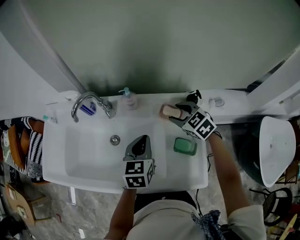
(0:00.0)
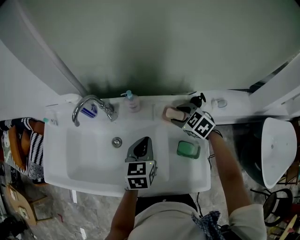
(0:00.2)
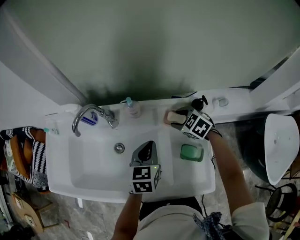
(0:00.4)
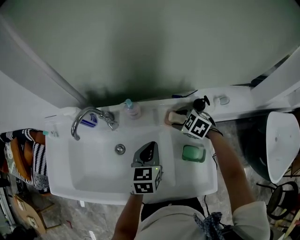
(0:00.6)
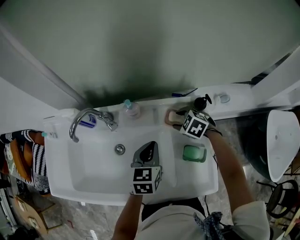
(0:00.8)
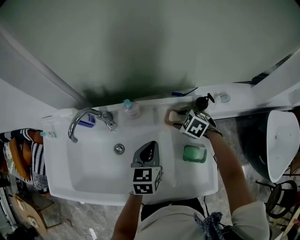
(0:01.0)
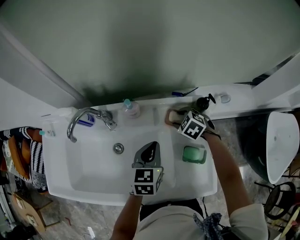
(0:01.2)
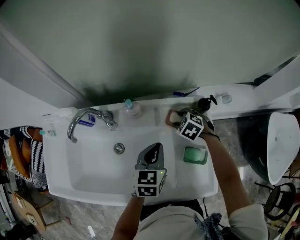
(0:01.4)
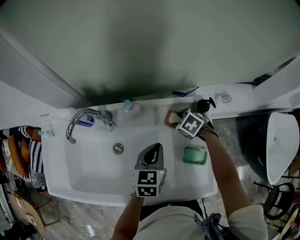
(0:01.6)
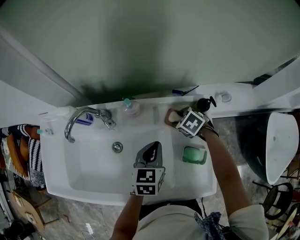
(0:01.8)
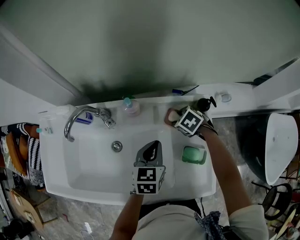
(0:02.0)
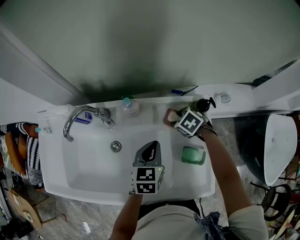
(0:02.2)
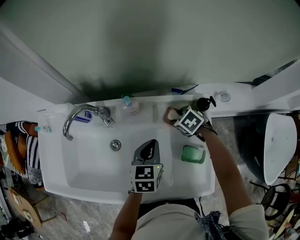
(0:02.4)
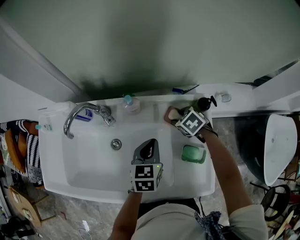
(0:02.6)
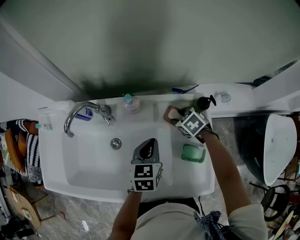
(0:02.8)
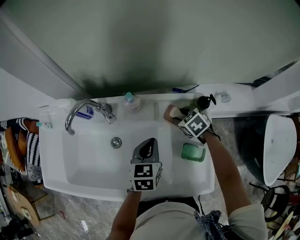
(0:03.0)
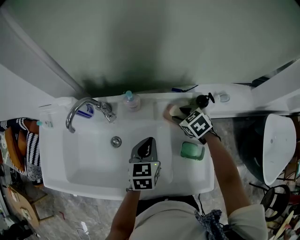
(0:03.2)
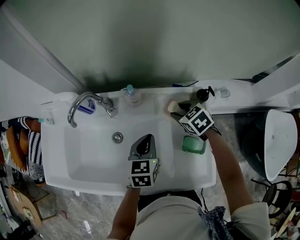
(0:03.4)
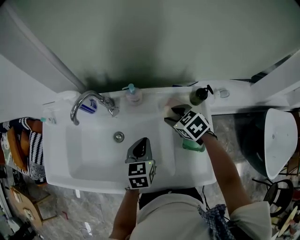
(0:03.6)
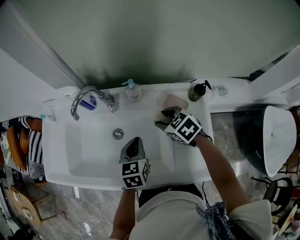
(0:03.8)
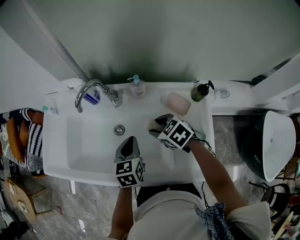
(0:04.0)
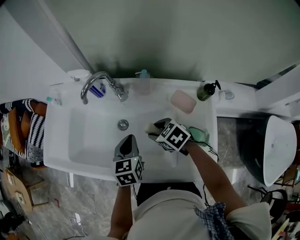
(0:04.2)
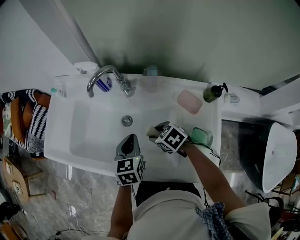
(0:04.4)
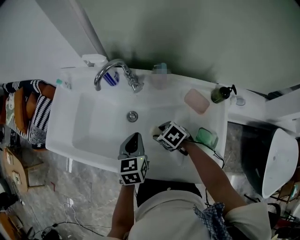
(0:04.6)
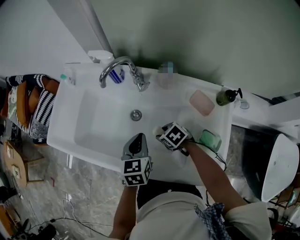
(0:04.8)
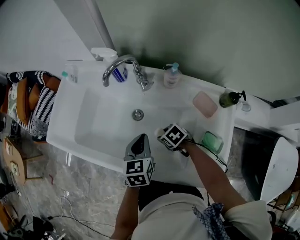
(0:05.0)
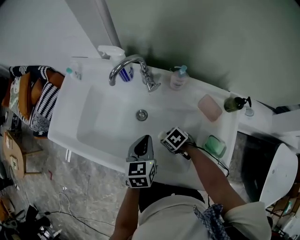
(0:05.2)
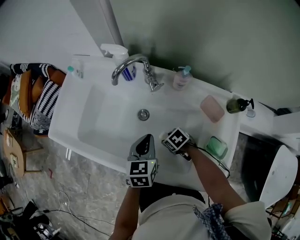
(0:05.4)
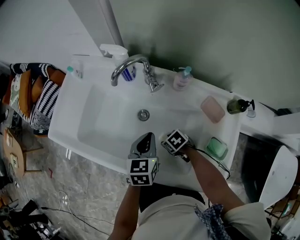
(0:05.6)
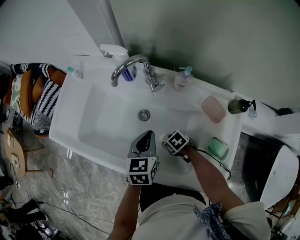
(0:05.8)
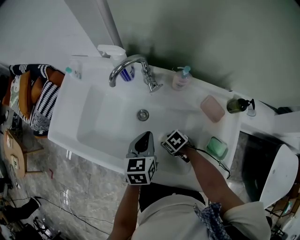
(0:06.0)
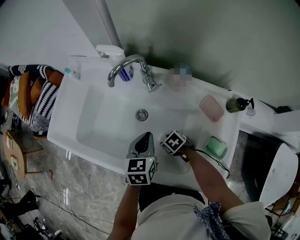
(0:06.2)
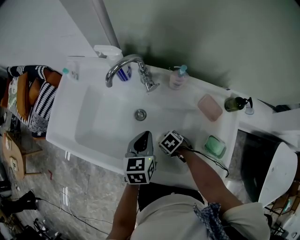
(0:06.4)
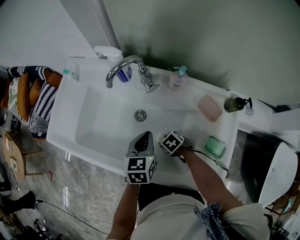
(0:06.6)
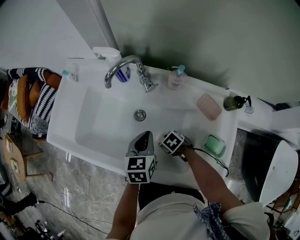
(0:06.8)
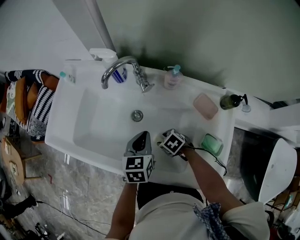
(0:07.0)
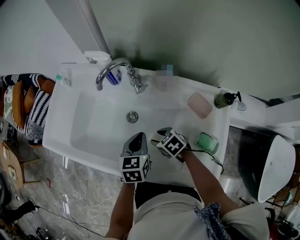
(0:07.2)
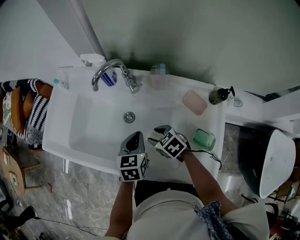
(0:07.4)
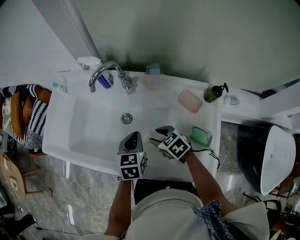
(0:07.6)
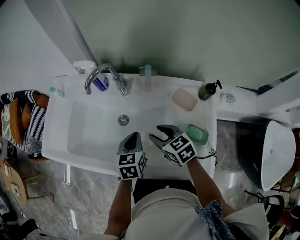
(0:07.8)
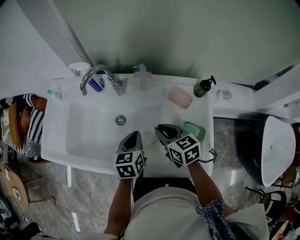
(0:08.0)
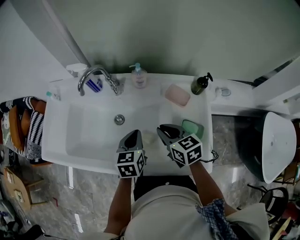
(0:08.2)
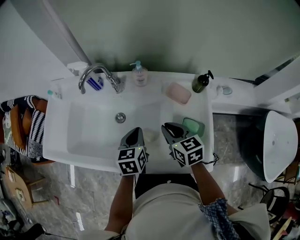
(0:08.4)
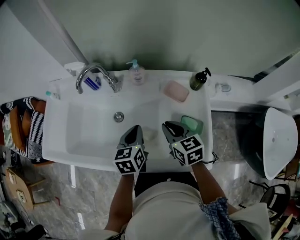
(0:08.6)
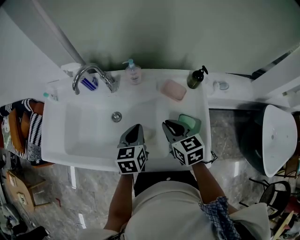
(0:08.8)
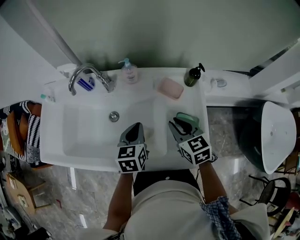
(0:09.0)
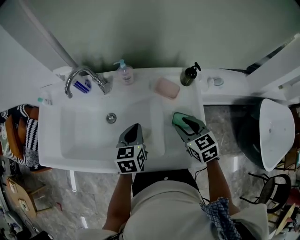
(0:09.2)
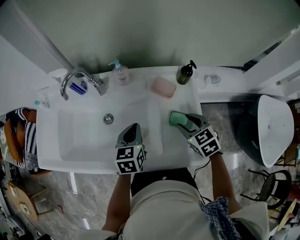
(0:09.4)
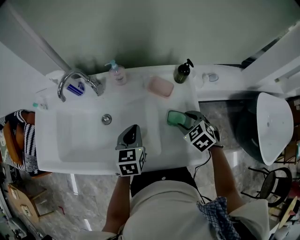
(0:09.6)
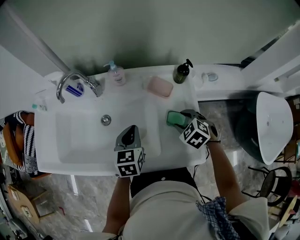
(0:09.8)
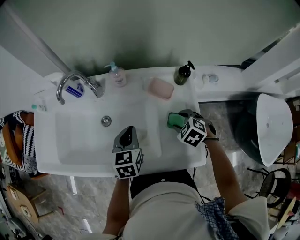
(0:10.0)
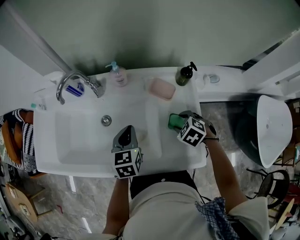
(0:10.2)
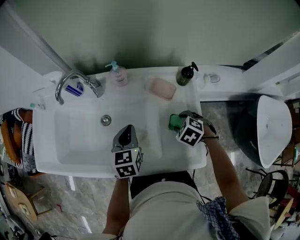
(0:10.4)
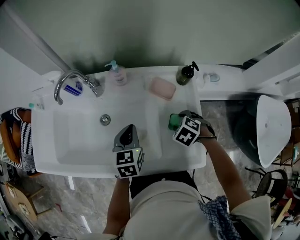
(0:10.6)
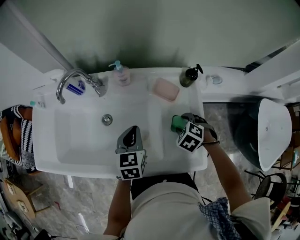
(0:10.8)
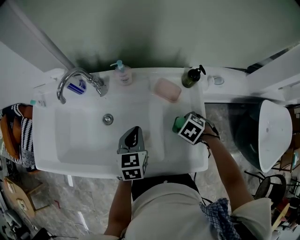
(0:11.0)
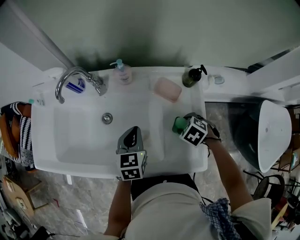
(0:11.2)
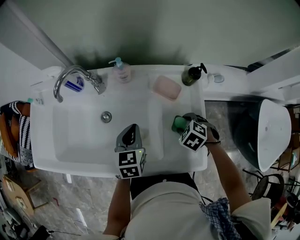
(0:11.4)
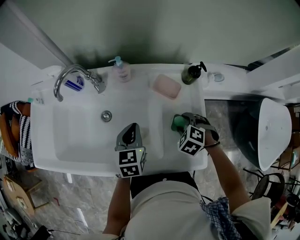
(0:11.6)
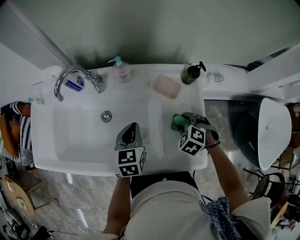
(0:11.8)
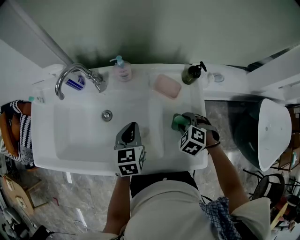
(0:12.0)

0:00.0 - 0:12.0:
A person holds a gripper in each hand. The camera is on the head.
0:00.0 - 0:01.6: The right gripper is displaced downward by approximately 15 cm, and rotates some 30 degrees. The left gripper changes place by about 5 cm.
0:01.6 - 0:03.0: The grippers stay close to where they were, moving slightly.
0:03.0 - 0:04.4: The right gripper goes upward and returns, about 10 cm each way, and swivels roughly 20 degrees, while the left gripper changes place by approximately 15 cm.
0:04.4 - 0:06.0: The right gripper shifts approximately 15 cm downward.
0:06.0 - 0:07.6: The right gripper goes approximately 15 cm upward, and rotates approximately 20 degrees.
0:07.6 - 0:09.0: The right gripper ends up some 20 cm from where it was, rotates roughly 40 degrees, and closes up. Meanwhile the left gripper ends up approximately 10 cm from where it was.
0:09.0 - 0:10.4: The right gripper is displaced downward by about 10 cm, points its fingers some 40 degrees further downward, and opens its fingers.
0:10.4 - 0:12.0: The grippers move only a little.

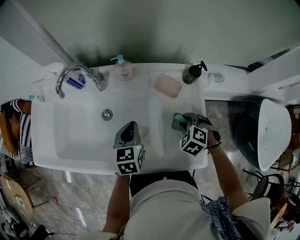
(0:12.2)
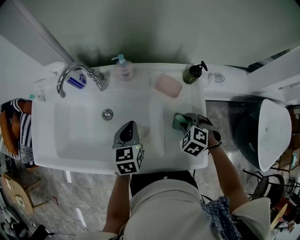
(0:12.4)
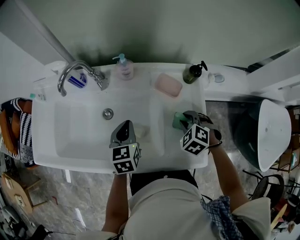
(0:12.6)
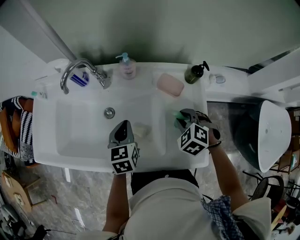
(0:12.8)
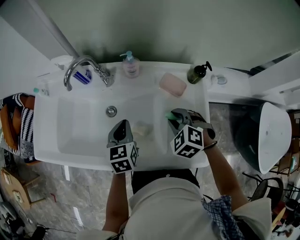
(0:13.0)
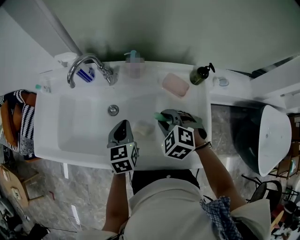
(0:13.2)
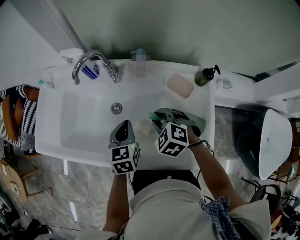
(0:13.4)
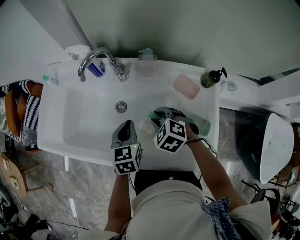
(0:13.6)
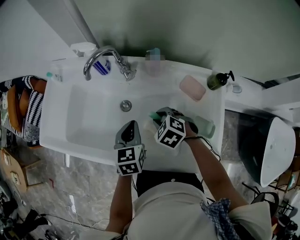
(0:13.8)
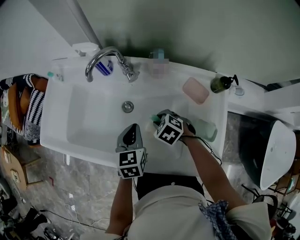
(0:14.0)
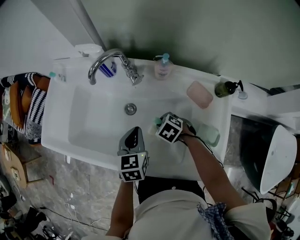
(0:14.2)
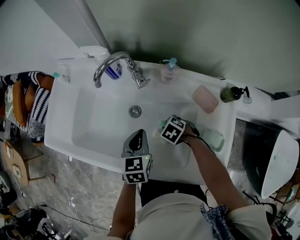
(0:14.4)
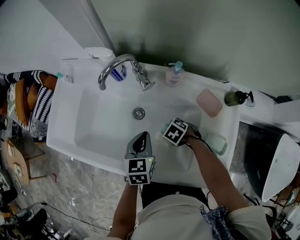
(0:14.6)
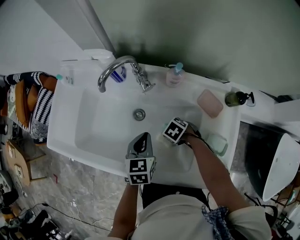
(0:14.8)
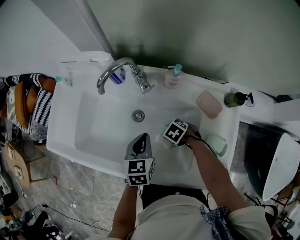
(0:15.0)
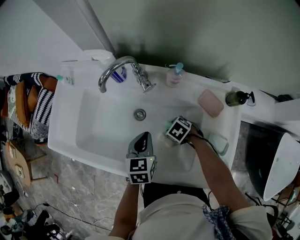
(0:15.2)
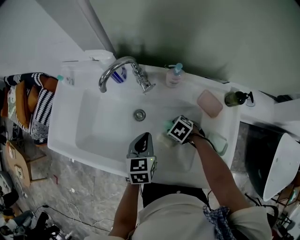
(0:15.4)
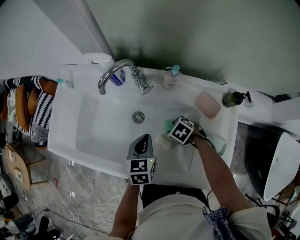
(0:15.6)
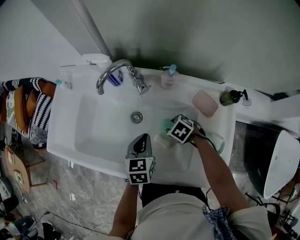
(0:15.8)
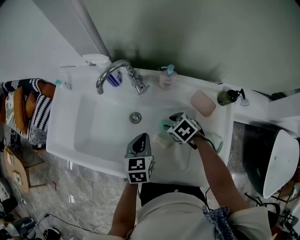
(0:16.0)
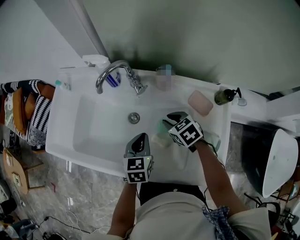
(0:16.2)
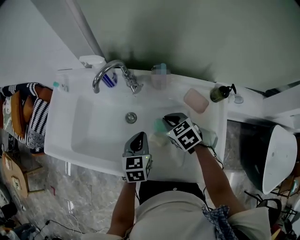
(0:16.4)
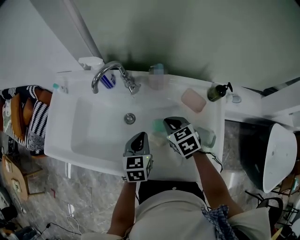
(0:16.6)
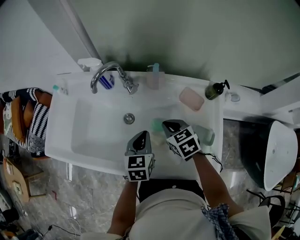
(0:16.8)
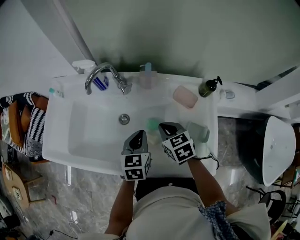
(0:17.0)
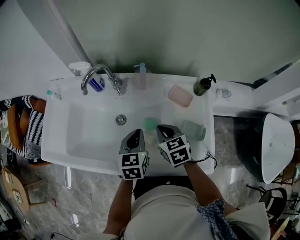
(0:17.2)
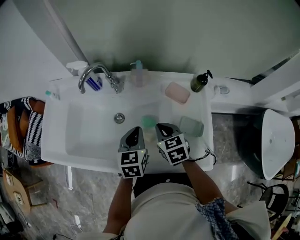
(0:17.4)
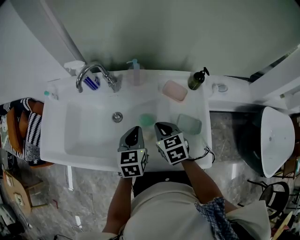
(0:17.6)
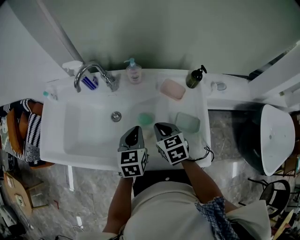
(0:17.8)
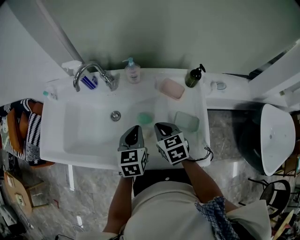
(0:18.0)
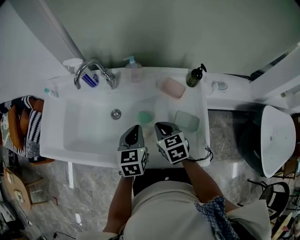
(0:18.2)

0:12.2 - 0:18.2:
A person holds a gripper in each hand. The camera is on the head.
0:12.2 - 0:13.8: The left gripper shifts by roughly 10 cm, while the right gripper shifts by approximately 20 cm, and rotates about 20 degrees.
0:13.8 - 0:15.2: The right gripper goes about 10 cm downward, and turns by roughly 20 degrees.
0:15.2 - 0:16.6: The right gripper moves upward, about 15 cm, changes its angle by about 40 degrees, and closes.
0:16.6 - 0:18.2: The left gripper travels to the right by roughly 5 cm. Meanwhile the right gripper is displaced backward by roughly 10 cm.

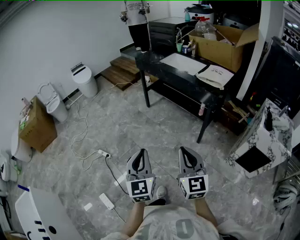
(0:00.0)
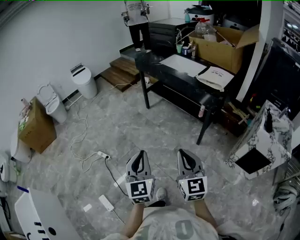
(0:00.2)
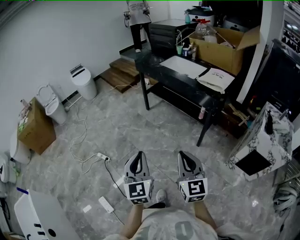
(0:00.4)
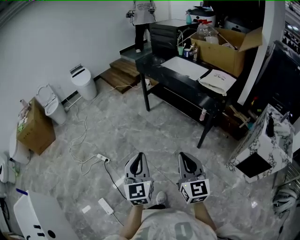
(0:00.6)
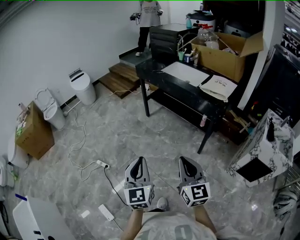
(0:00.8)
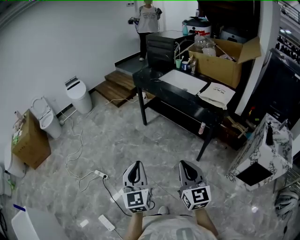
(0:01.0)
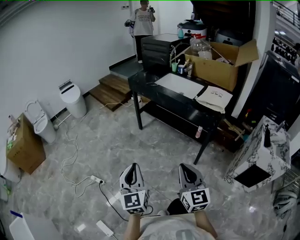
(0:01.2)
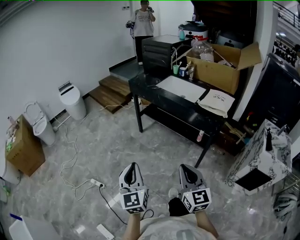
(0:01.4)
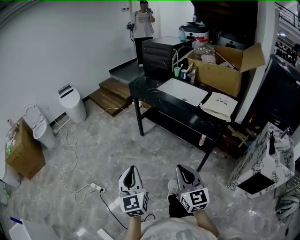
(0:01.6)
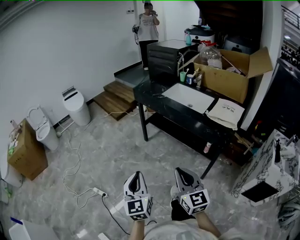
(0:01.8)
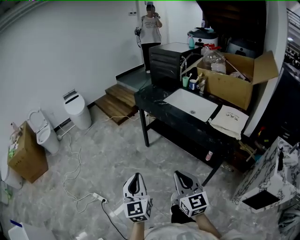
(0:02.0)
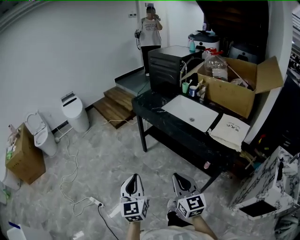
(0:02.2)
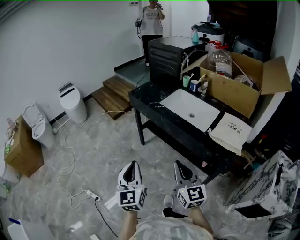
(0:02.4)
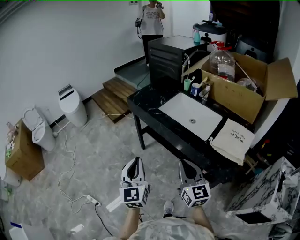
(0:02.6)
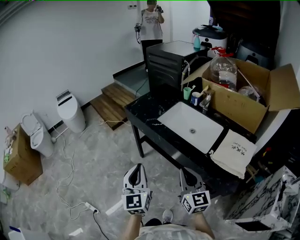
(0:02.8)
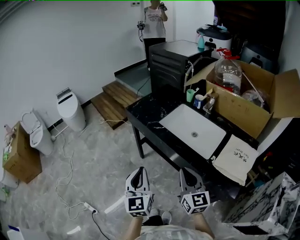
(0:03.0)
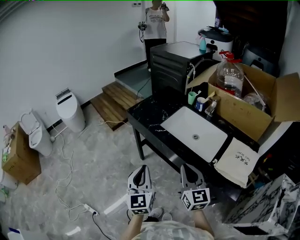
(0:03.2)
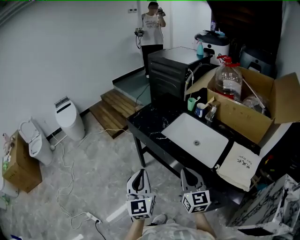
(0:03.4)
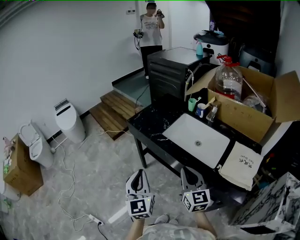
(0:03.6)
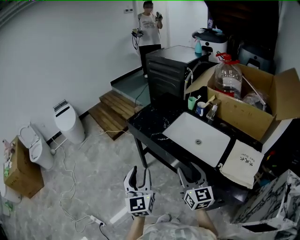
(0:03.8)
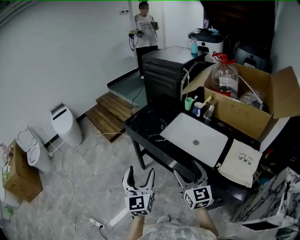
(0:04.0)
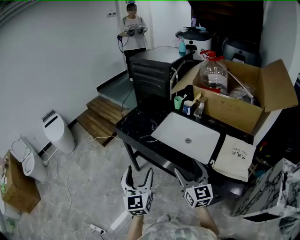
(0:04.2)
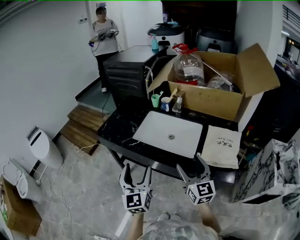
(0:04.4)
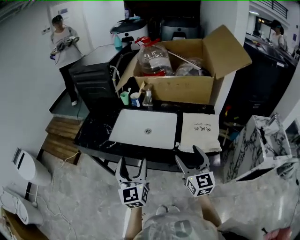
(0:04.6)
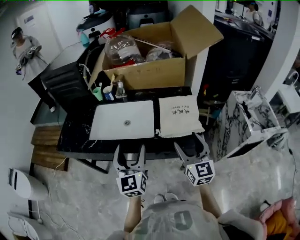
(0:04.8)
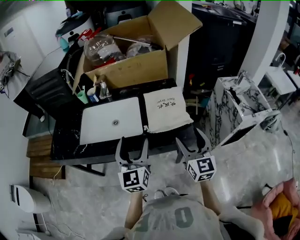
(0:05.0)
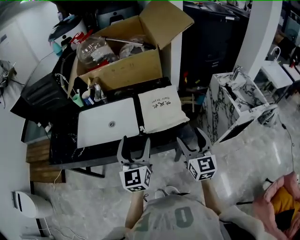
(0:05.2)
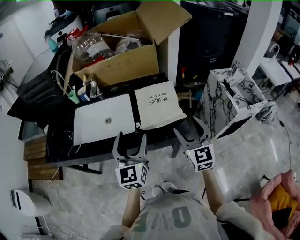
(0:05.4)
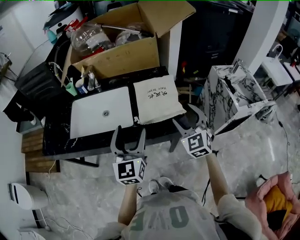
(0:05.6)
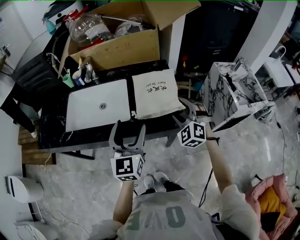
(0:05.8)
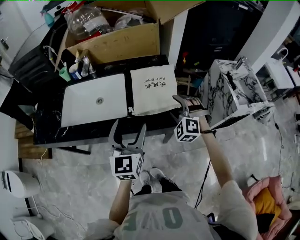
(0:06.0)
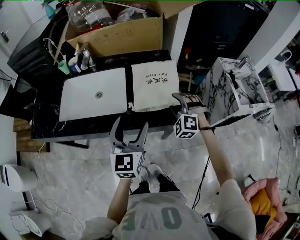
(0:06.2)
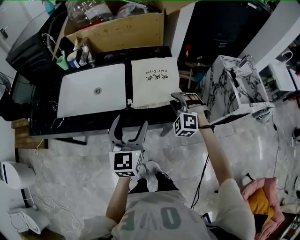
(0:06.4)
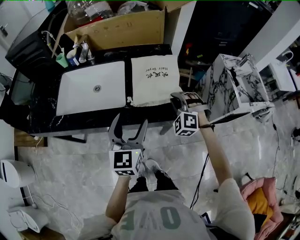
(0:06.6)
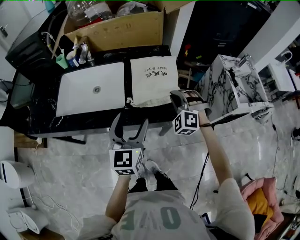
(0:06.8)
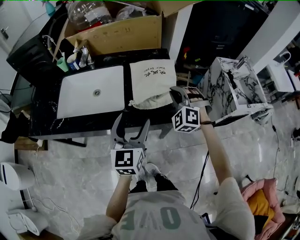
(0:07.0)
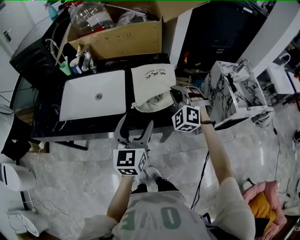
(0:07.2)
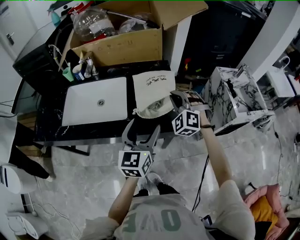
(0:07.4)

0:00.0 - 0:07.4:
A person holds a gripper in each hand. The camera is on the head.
0:00.0 - 0:01.4: The grippers both shift forward by some 15 cm.
0:01.4 - 0:03.0: The pair of grippers is taken forward, some 50 cm.
0:03.0 - 0:04.4: The right gripper travels to the right and forward by some 10 cm, swivels roughly 20 degrees, and opens, while the left gripper goes roughly 10 cm forward and to the right, and opens its fingers.
0:04.4 - 0:06.0: The right gripper moves approximately 30 cm, and tips its fingers downward by roughly 30 degrees; the left gripper ends up roughly 30 cm from where it was, and turns by about 40 degrees.
0:06.0 - 0:07.4: The left gripper is displaced to the right by about 5 cm. Meanwhile the right gripper shifts some 5 cm upward, and closes its fingers.
